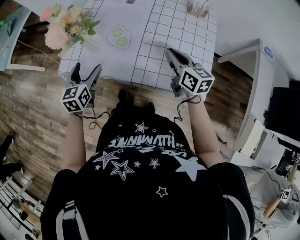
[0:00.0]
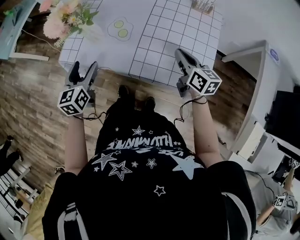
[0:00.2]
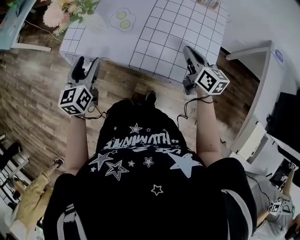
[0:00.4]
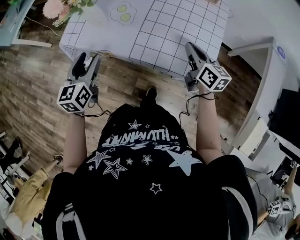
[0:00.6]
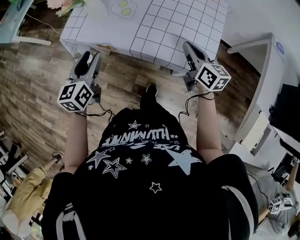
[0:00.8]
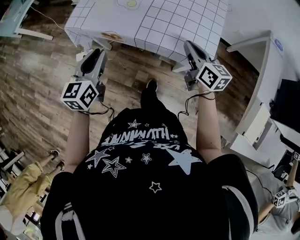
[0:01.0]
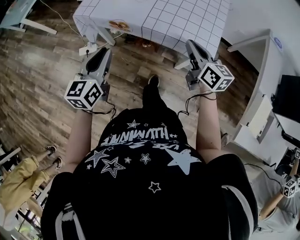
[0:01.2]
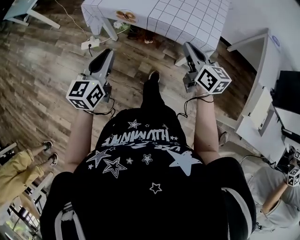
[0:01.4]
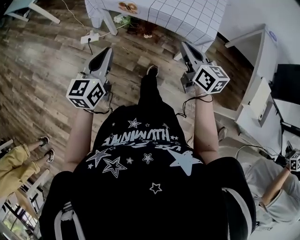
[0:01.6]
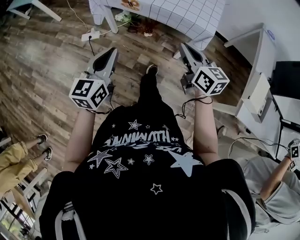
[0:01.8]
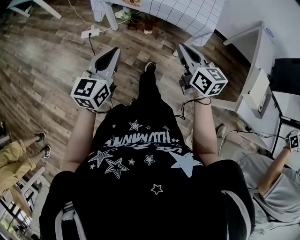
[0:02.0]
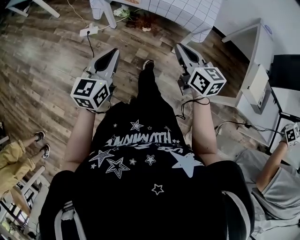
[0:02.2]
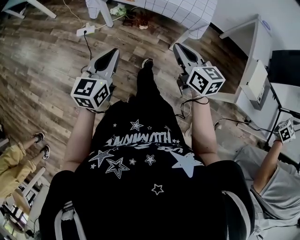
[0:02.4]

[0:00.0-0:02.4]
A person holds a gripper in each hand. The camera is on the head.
0:00.0 to 0:01.2: The grippers both shift backward by some 25 cm. The left gripper closes its fingers.
0:01.2 to 0:02.4: Both grippers travel together backward, approximately 25 cm.

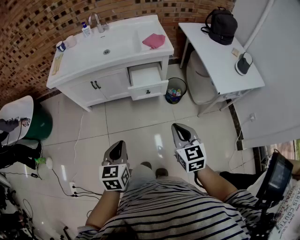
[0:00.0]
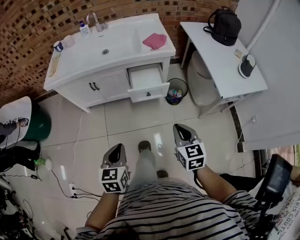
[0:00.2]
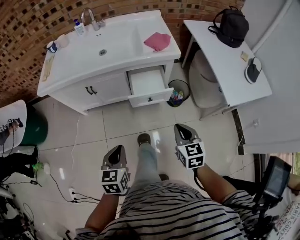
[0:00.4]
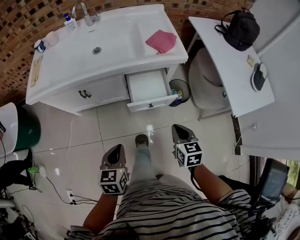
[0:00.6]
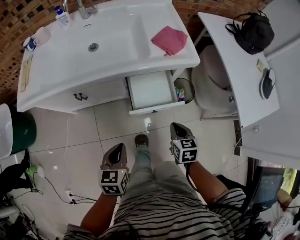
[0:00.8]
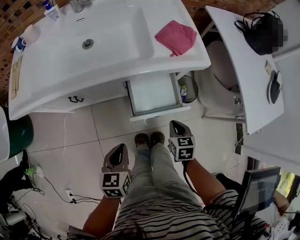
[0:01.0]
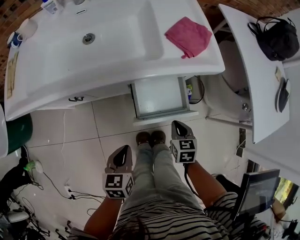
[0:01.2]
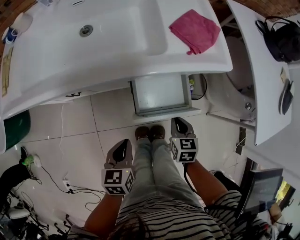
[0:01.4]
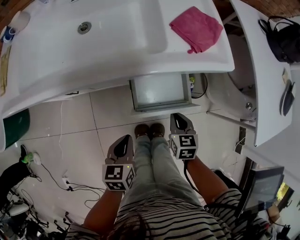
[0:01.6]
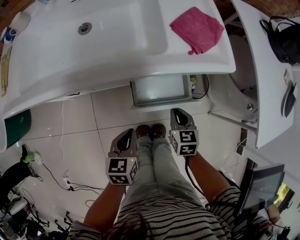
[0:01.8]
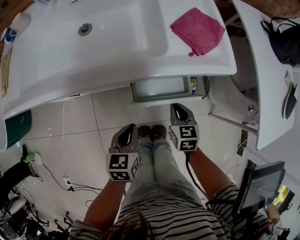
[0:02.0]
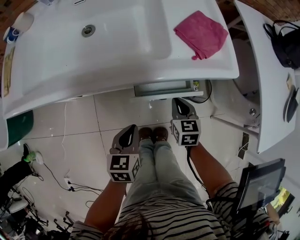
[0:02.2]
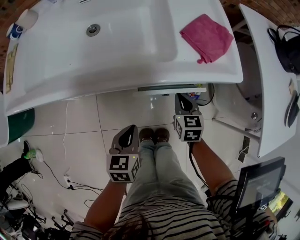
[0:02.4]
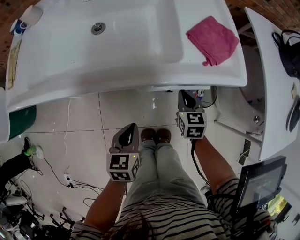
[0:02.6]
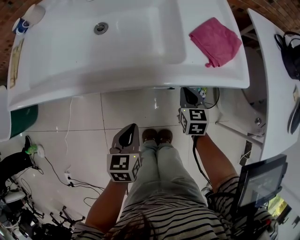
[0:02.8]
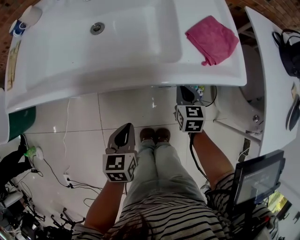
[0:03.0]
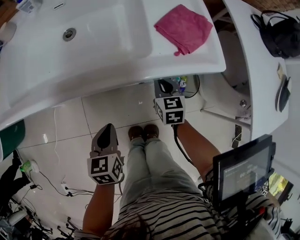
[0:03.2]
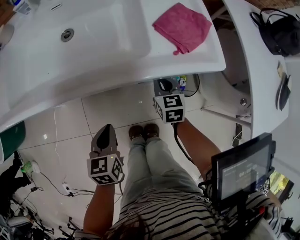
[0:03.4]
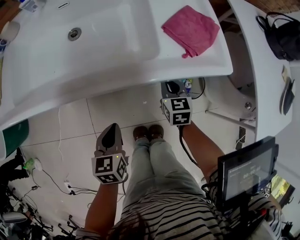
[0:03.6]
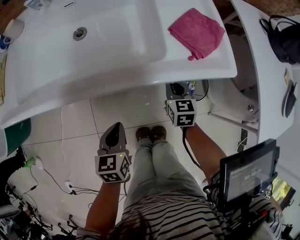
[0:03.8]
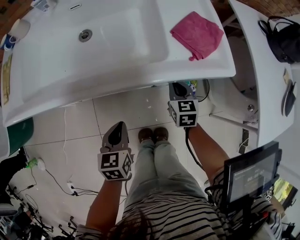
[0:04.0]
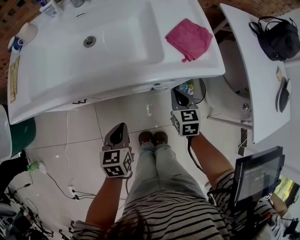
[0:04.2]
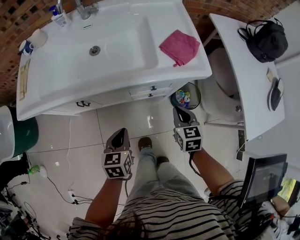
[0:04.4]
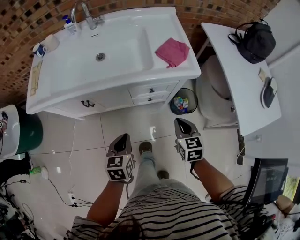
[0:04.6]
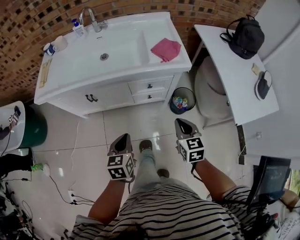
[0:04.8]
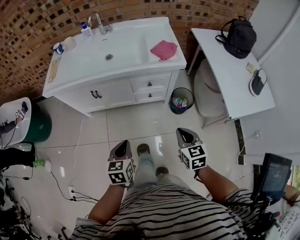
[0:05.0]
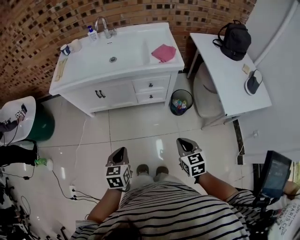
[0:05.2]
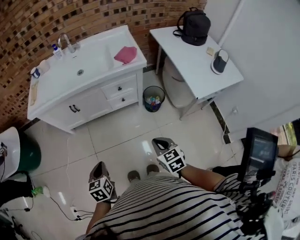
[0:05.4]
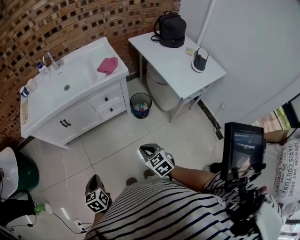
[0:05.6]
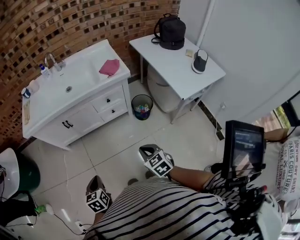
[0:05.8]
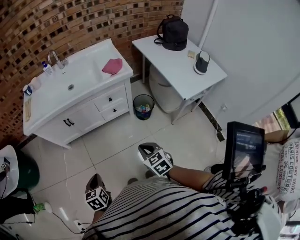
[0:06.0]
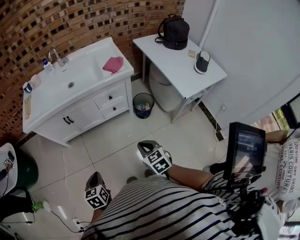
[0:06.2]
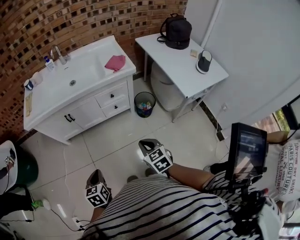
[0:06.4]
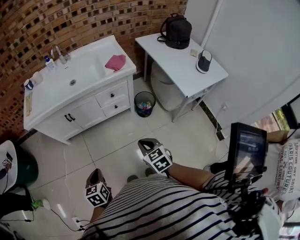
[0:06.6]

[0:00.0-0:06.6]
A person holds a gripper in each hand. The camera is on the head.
0:00.0 to 0:01.6: Both grippers move forward and downward, approximately 50 cm. The right gripper rotates approximately 30 degrees; the left gripper rotates some 20 degrees.
0:01.6 to 0:03.2: The left gripper travels forward by about 5 cm. The right gripper is displaced forward by approximately 15 cm.
0:03.2 to 0:05.0: Both grippers move backward and upward, some 40 cm.
0:05.0 to 0:06.6: The two grippers go about 15 cm backward and to the left.

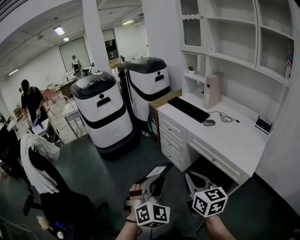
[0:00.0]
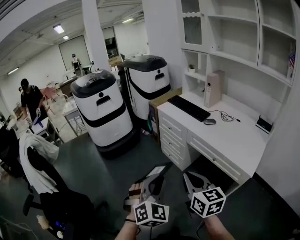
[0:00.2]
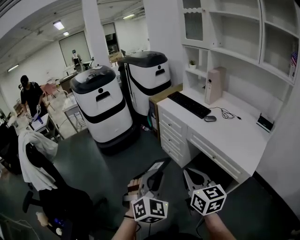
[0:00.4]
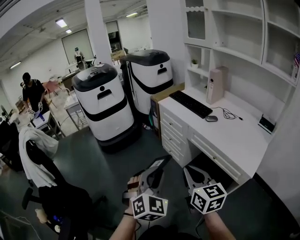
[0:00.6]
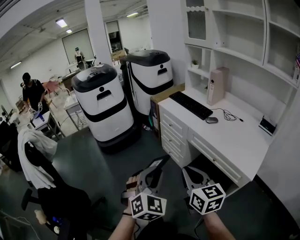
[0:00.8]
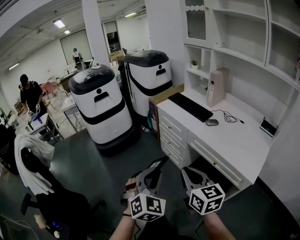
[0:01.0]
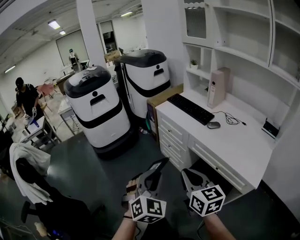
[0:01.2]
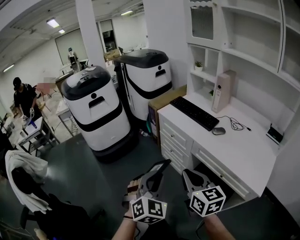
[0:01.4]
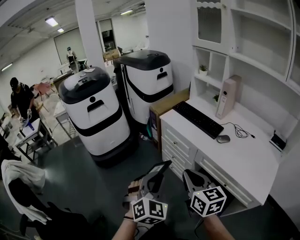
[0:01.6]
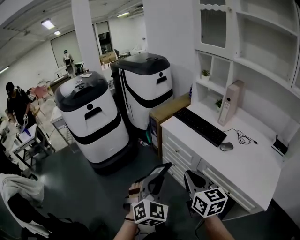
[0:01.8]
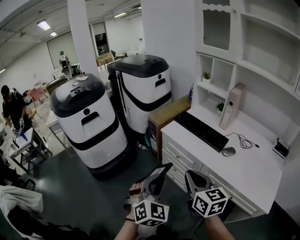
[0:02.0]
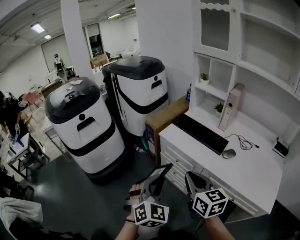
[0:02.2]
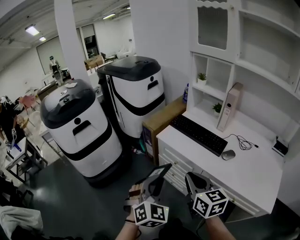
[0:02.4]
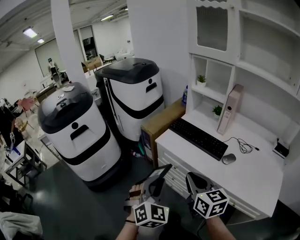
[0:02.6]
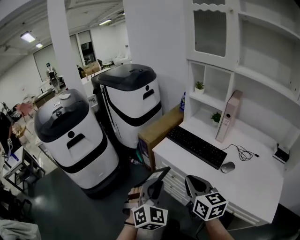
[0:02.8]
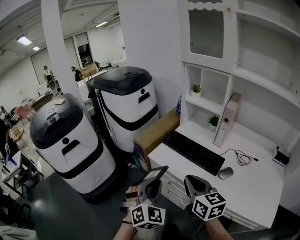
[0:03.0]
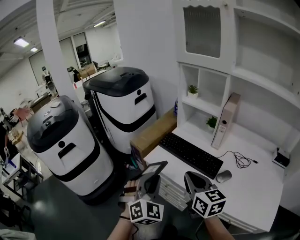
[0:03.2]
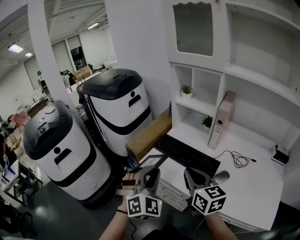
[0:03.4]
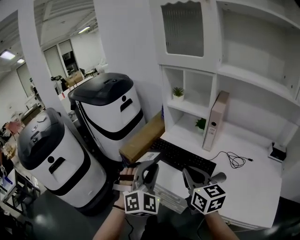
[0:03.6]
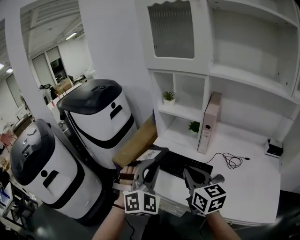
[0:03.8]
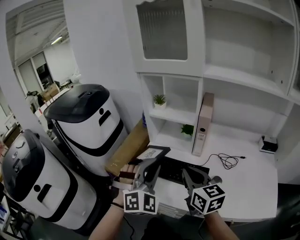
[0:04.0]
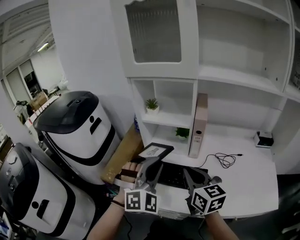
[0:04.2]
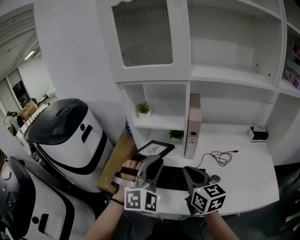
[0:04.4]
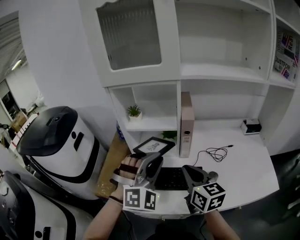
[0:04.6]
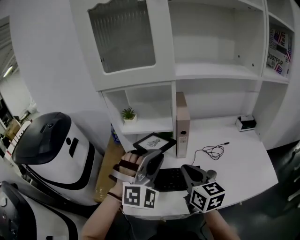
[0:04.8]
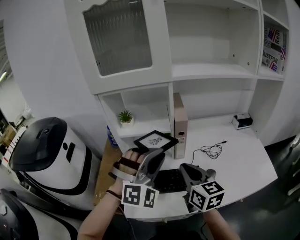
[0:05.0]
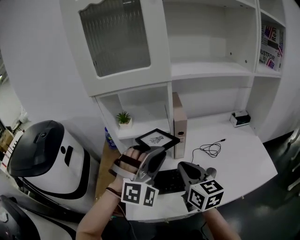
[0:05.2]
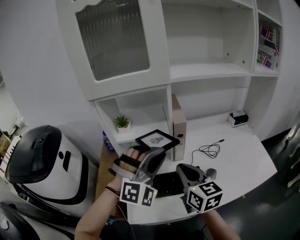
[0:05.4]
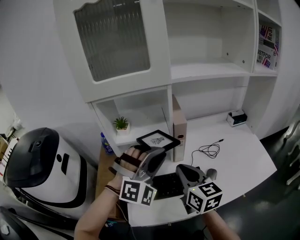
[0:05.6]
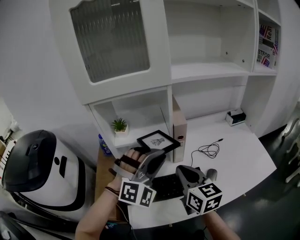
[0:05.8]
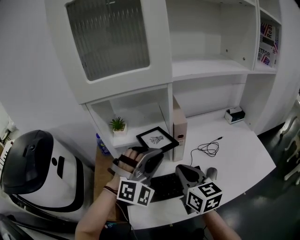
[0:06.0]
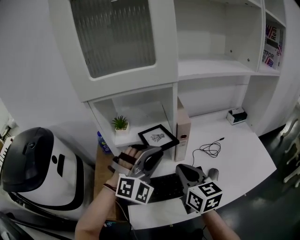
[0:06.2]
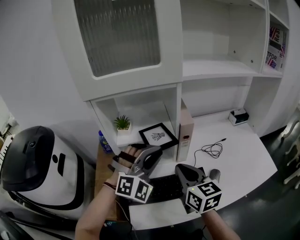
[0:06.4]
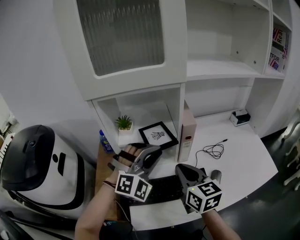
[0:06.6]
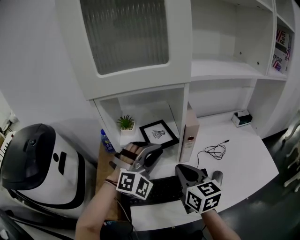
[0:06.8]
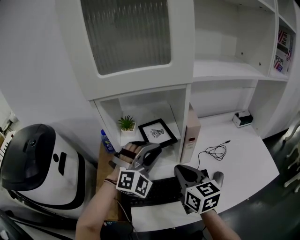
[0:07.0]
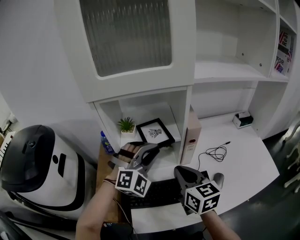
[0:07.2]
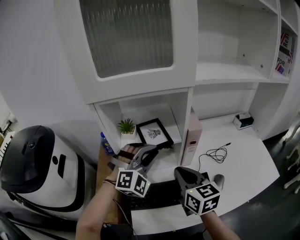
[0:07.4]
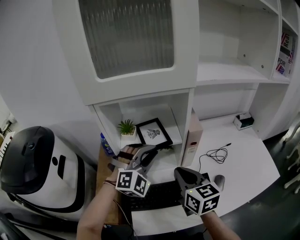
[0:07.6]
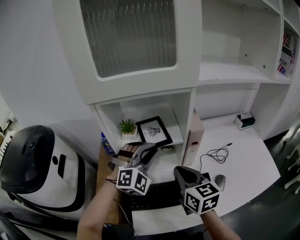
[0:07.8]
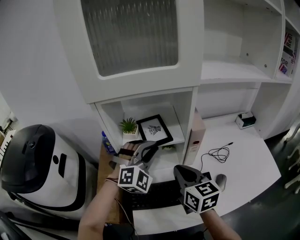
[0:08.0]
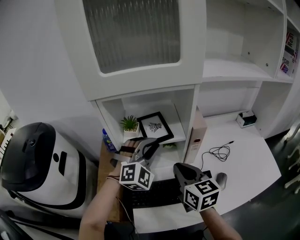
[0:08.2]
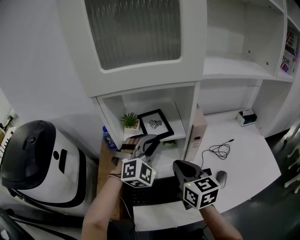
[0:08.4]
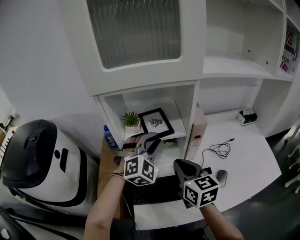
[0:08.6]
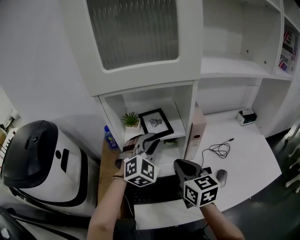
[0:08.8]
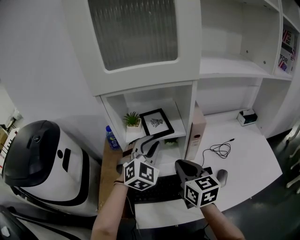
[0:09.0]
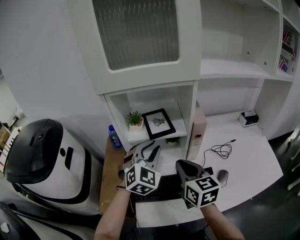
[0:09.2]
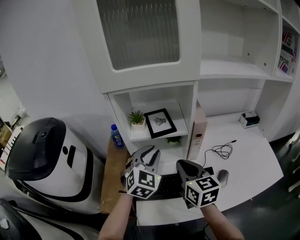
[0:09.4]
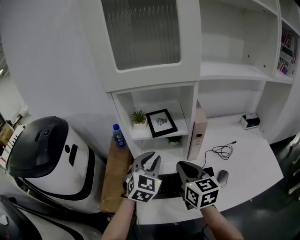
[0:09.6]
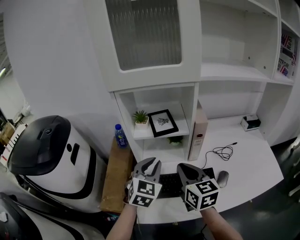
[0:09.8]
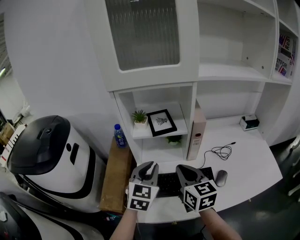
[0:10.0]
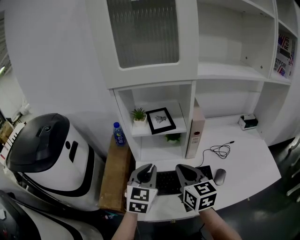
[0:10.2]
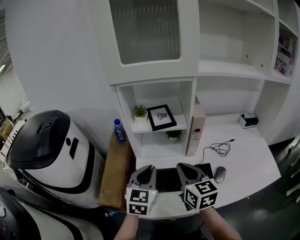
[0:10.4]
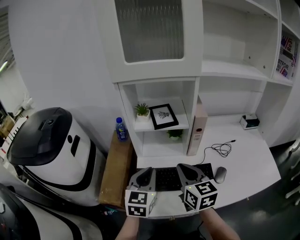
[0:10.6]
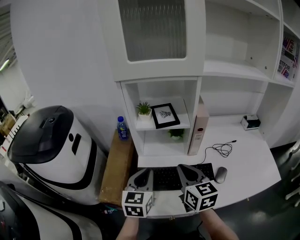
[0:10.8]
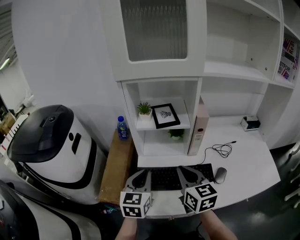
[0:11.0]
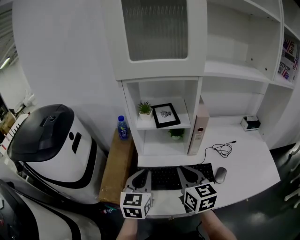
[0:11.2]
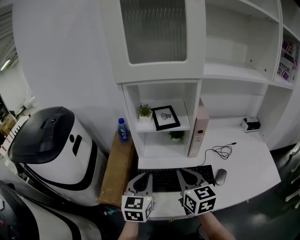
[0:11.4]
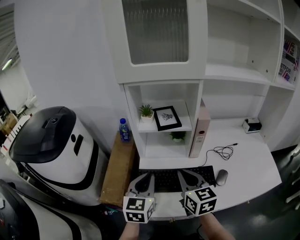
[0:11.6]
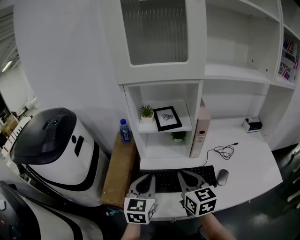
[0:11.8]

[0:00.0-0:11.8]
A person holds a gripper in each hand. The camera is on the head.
0:00.0 to 0:01.4: Both grippers move forward, approximately 20 cm.
0:01.4 to 0:03.0: Both grippers move forward, some 35 cm.
0:03.0 to 0:04.4: The left gripper changes place by roughly 30 cm, and rotates approximately 50 degrees. Meanwhile the right gripper shifts by about 25 cm, and rotates about 30 degrees.
0:04.4 to 0:06.0: The left gripper heads forward, covering about 10 cm, and rotates approximately 30 degrees. The right gripper is displaced forward by approximately 5 cm.
0:06.0 to 0:07.4: The left gripper shifts roughly 10 cm forward and to the left. Meanwhile the right gripper shifts by roughly 5 cm.
0:07.4 to 0:08.8: The left gripper changes its angle by approximately 20 degrees.
0:08.8 to 0:10.4: The left gripper is displaced backward by approximately 15 cm, and rotates around the line of its fingers by approximately 50 degrees, counterclockwise from behind. Meanwhile the right gripper is displaced backward by about 5 cm.
0:10.4 to 0:11.8: The grippers make only small movements.

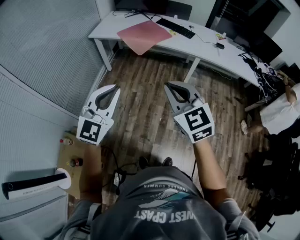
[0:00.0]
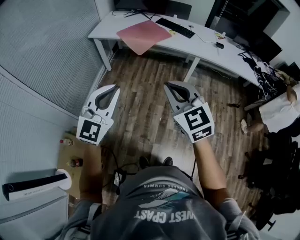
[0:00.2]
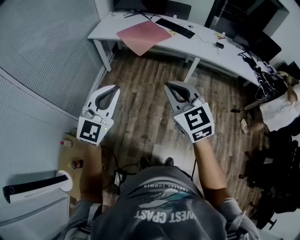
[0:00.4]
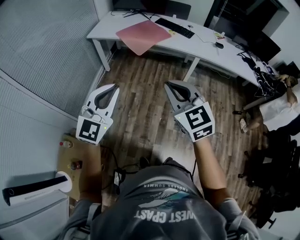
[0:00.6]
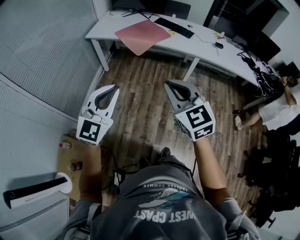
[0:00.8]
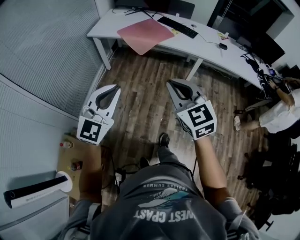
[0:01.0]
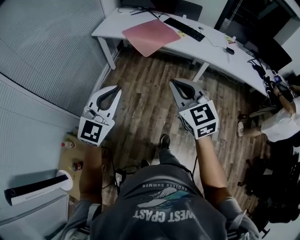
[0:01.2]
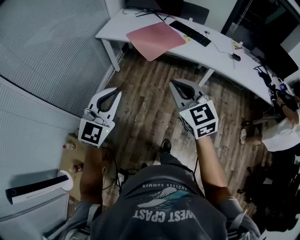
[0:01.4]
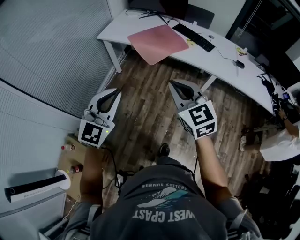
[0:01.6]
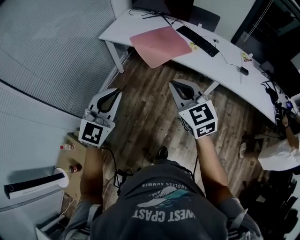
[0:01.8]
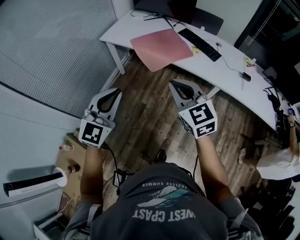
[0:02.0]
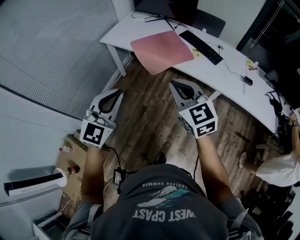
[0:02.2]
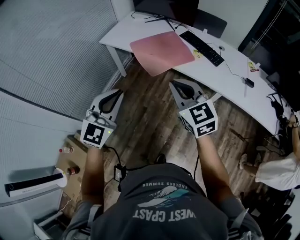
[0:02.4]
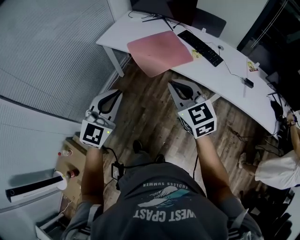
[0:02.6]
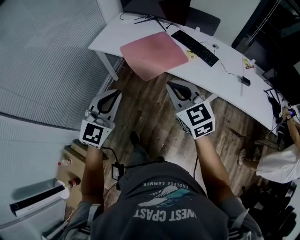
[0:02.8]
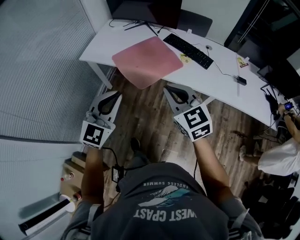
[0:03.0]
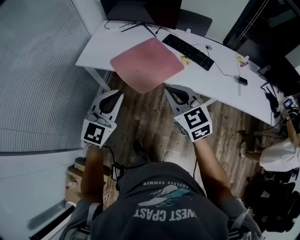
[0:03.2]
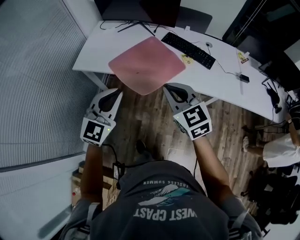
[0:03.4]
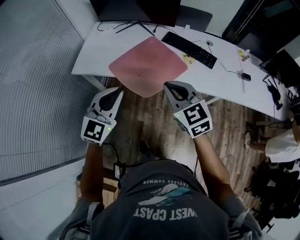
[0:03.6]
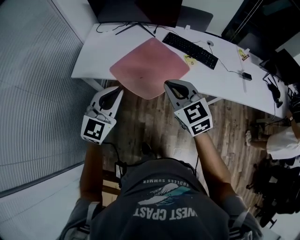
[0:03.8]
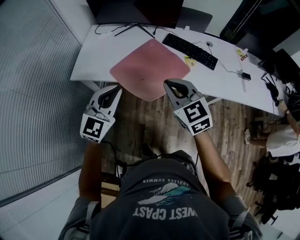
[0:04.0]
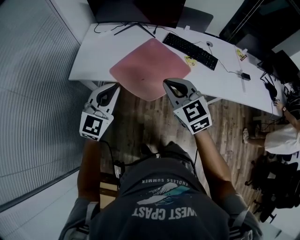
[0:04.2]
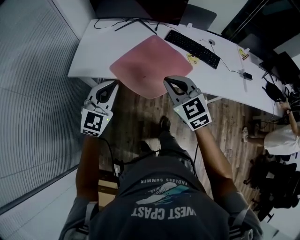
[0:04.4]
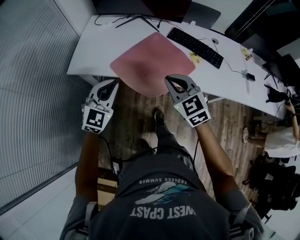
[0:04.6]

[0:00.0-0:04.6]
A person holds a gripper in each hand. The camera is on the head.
0:00.0 to 0:01.6: Both grippers move forward, roughly 20 cm.
0:01.6 to 0:03.0: The two grippers go roughly 25 cm forward.
0:03.0 to 0:04.6: The two grippers go some 30 cm forward, to the left and downward.
